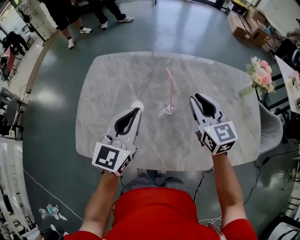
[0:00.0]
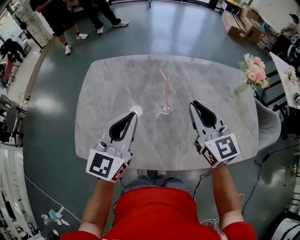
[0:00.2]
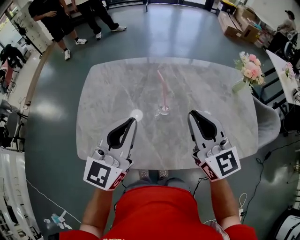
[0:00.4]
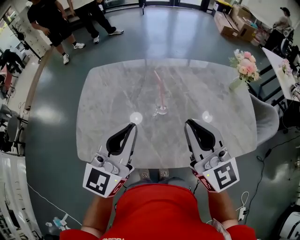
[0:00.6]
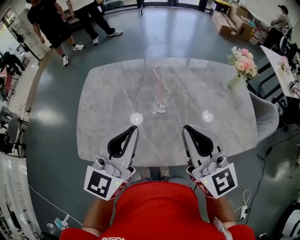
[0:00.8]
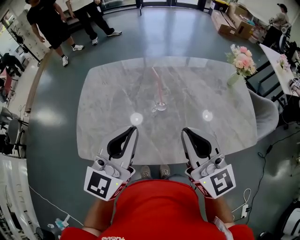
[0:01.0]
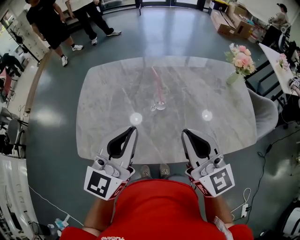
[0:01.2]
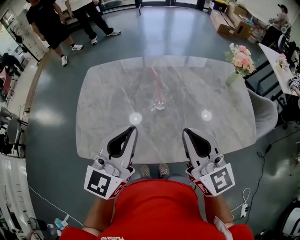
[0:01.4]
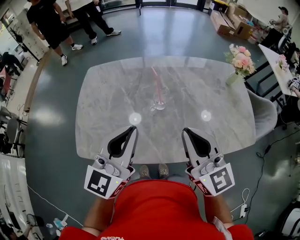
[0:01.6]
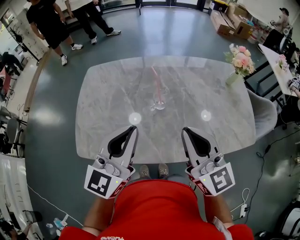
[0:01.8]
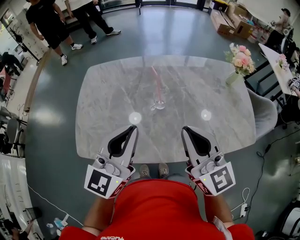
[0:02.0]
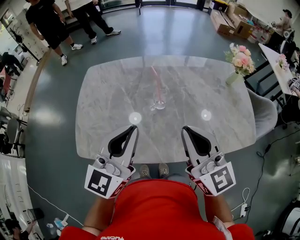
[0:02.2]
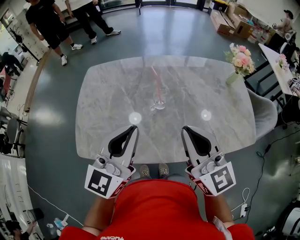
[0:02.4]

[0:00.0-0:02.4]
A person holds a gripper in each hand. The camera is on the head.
0:00.0 to 0:01.2: Both grippers travel together backward and upward, some 15 cm.
0:01.2 to 0:02.4: The two grippers keep their place.

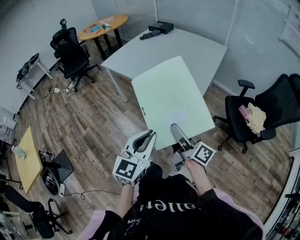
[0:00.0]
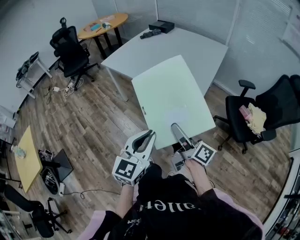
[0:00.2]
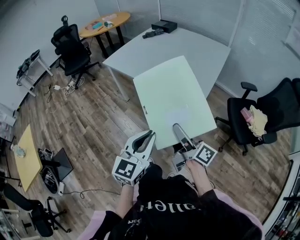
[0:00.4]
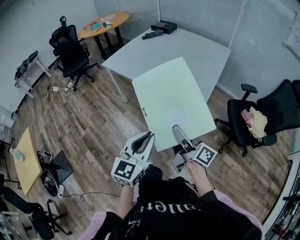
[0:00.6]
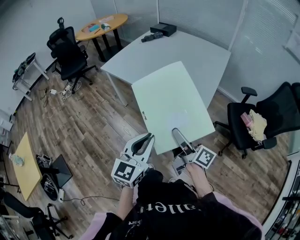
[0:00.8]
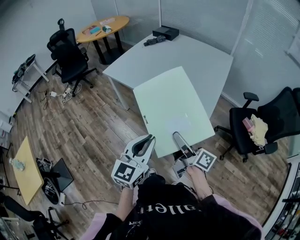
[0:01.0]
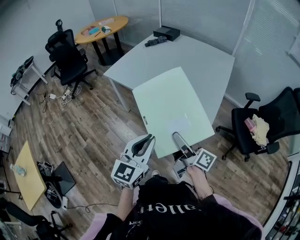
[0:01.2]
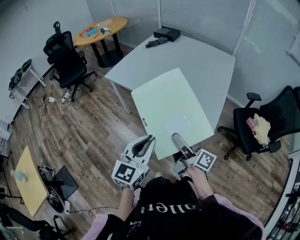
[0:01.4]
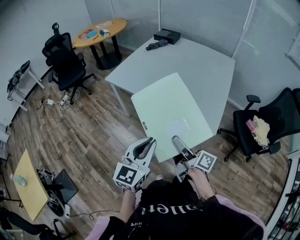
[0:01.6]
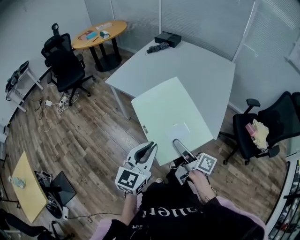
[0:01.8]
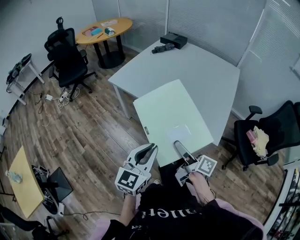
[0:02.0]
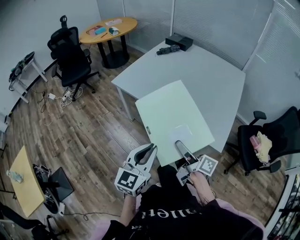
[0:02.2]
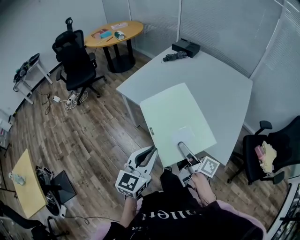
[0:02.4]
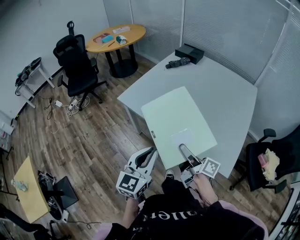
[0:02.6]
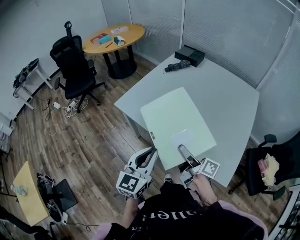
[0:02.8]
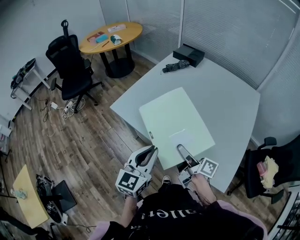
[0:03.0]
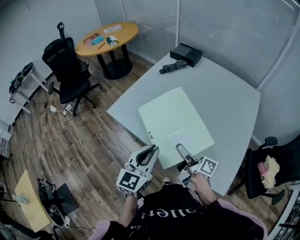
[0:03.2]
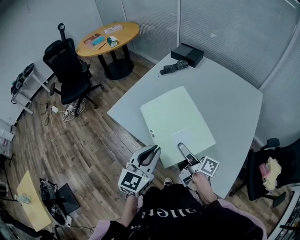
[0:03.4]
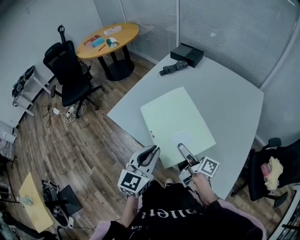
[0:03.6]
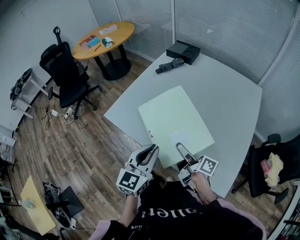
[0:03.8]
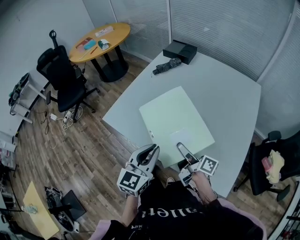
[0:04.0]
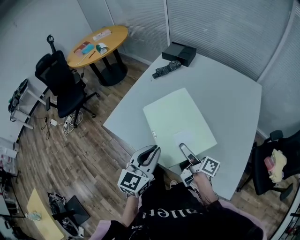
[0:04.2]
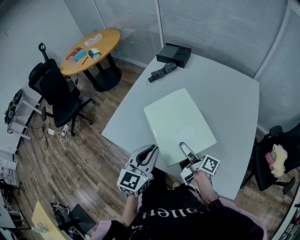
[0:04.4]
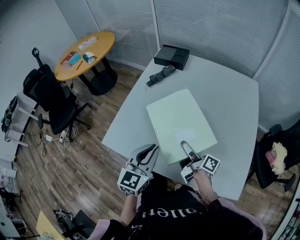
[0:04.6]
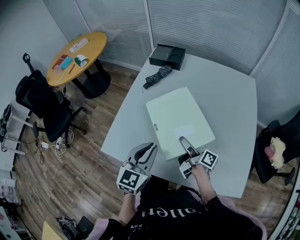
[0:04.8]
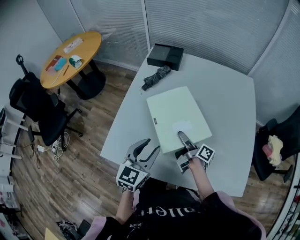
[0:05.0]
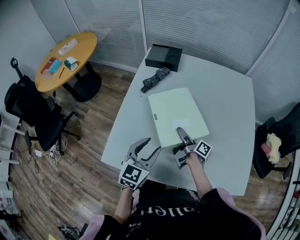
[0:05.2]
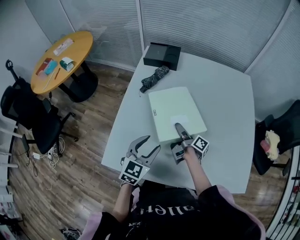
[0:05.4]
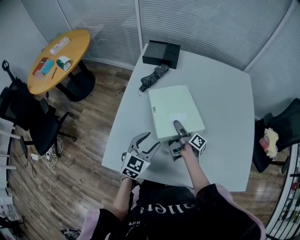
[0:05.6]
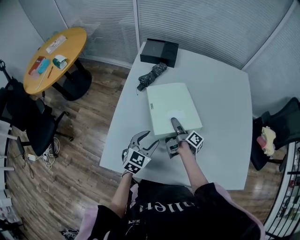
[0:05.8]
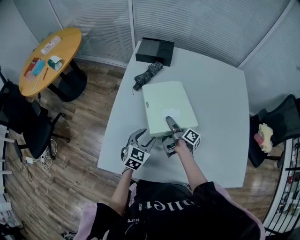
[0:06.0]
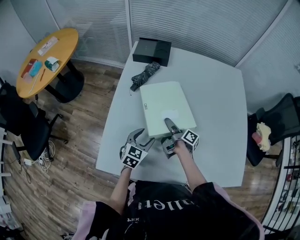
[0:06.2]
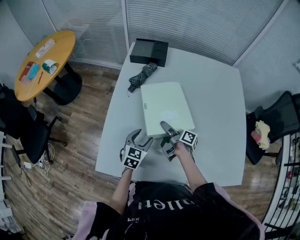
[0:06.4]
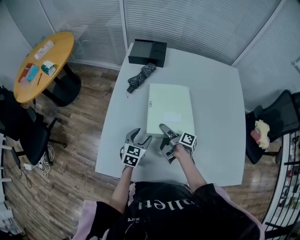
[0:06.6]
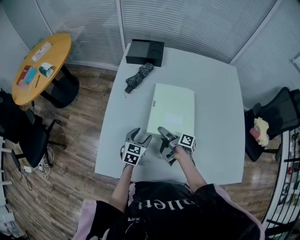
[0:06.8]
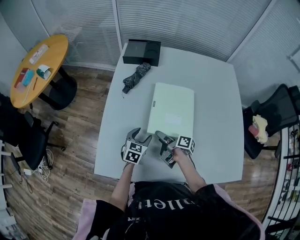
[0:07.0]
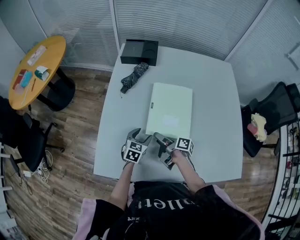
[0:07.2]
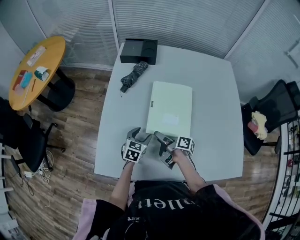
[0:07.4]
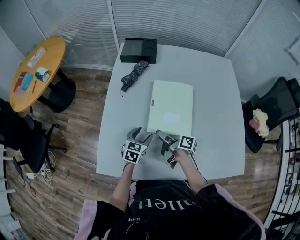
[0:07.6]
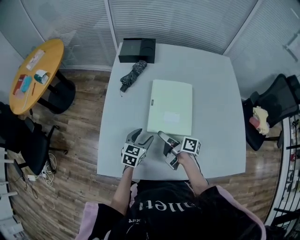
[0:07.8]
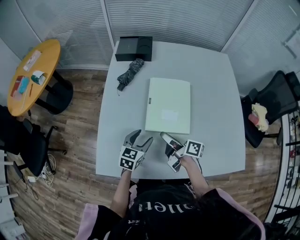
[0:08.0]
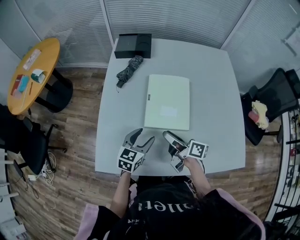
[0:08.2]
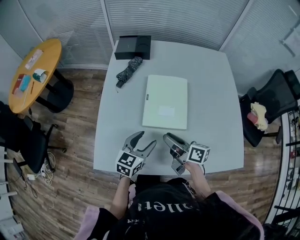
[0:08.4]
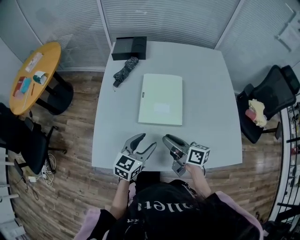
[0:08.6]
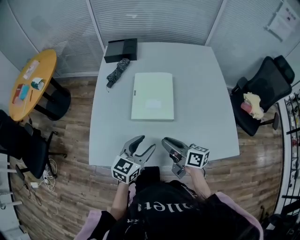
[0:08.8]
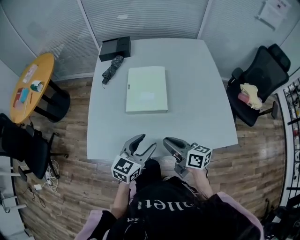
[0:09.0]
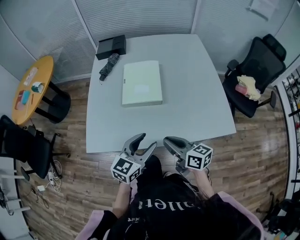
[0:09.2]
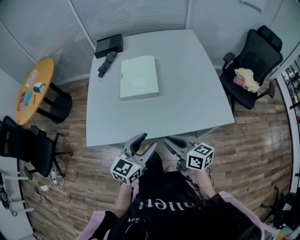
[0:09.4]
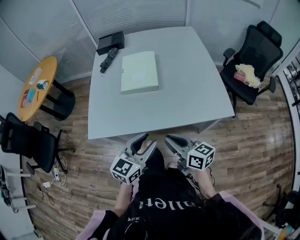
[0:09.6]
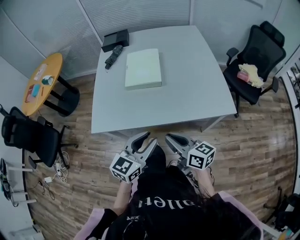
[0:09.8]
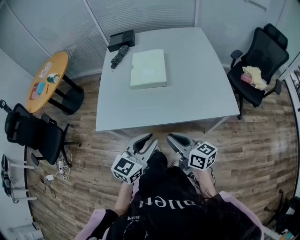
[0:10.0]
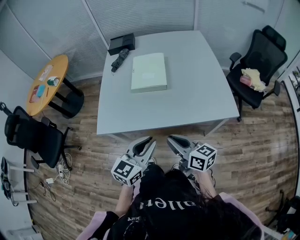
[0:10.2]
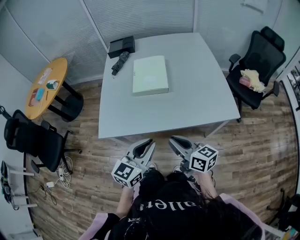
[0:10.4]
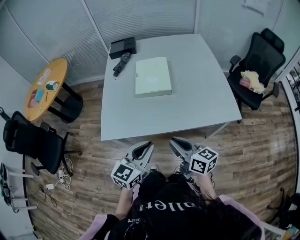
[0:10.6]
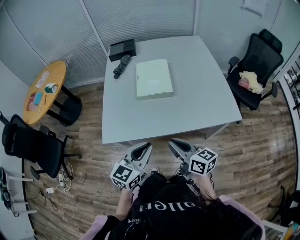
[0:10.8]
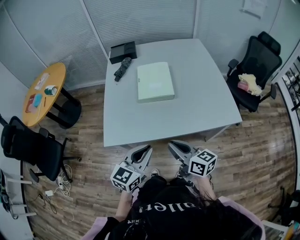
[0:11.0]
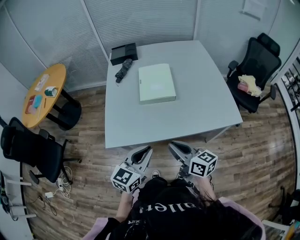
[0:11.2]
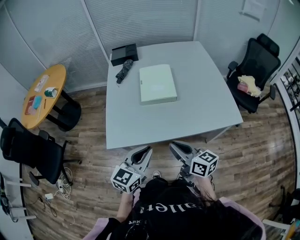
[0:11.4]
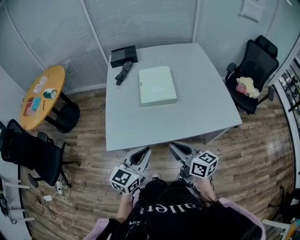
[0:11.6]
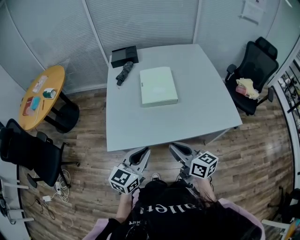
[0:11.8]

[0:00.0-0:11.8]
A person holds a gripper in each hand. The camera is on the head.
0:00.0 to 0:01.4: The right gripper goes roughly 20 cm to the left and forward, while the left gripper goes approximately 20 cm forward and to the left.
0:01.4 to 0:03.0: Both grippers move forward, approximately 30 cm.
0:03.0 to 0:04.4: The two grippers go roughly 15 cm forward.
0:04.4 to 0:06.0: The left gripper ends up some 30 cm from where it was, rotates approximately 30 degrees, and opens its fingers, while the right gripper moves some 25 cm, and turns by approximately 30 degrees.
0:06.0 to 0:07.4: The right gripper heads backward, covering roughly 10 cm, while the left gripper goes some 5 cm downward.
0:07.4 to 0:08.8: The two grippers go approximately 20 cm upward, backward and to the right. The right gripper rotates roughly 40 degrees, and closes its fingers; the left gripper turns by some 20 degrees.
0:08.8 to 0:10.4: Both grippers travel together backward, approximately 20 cm. The left gripper closes up.
0:10.4 to 0:11.8: Both grippers travel together to the left, approximately 10 cm.

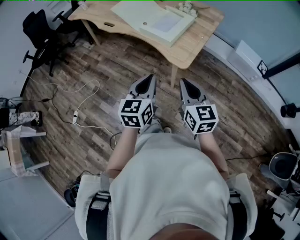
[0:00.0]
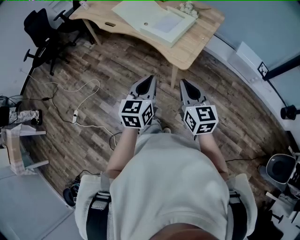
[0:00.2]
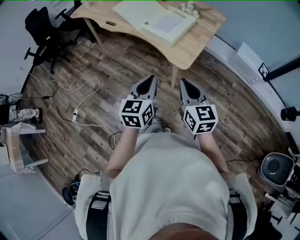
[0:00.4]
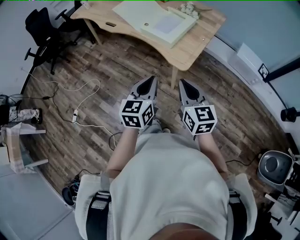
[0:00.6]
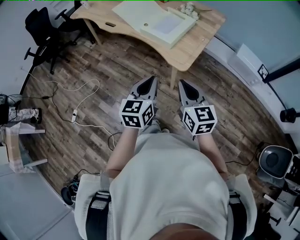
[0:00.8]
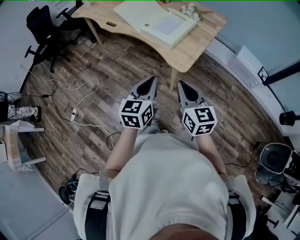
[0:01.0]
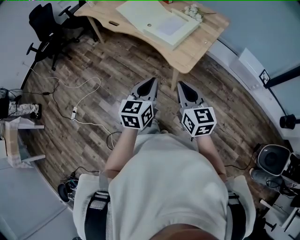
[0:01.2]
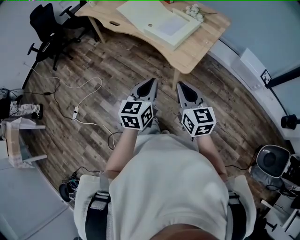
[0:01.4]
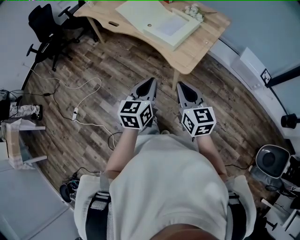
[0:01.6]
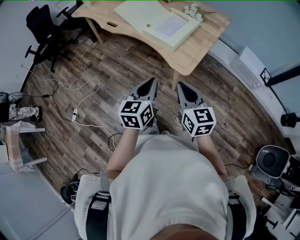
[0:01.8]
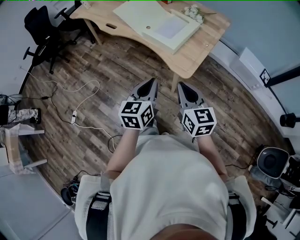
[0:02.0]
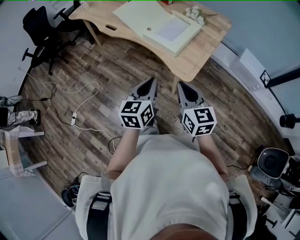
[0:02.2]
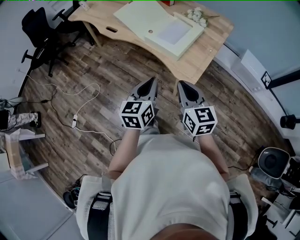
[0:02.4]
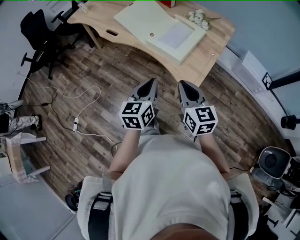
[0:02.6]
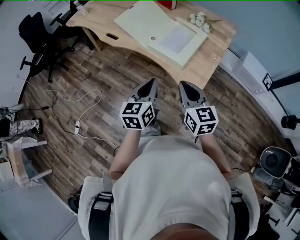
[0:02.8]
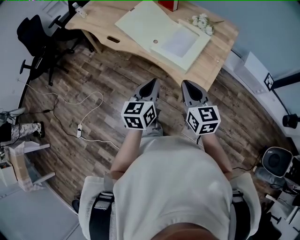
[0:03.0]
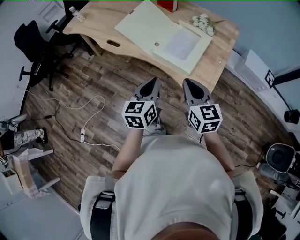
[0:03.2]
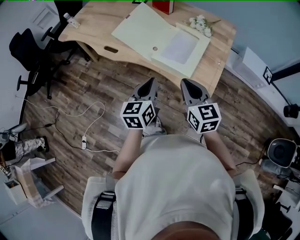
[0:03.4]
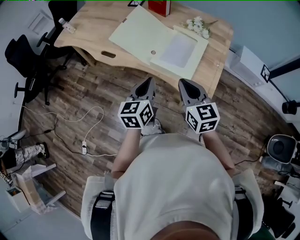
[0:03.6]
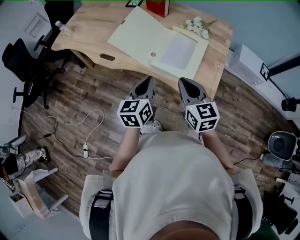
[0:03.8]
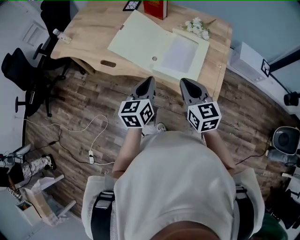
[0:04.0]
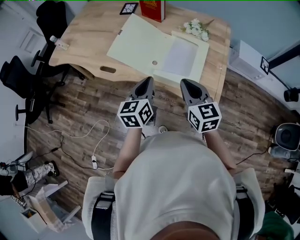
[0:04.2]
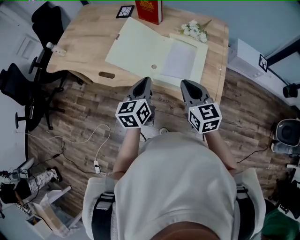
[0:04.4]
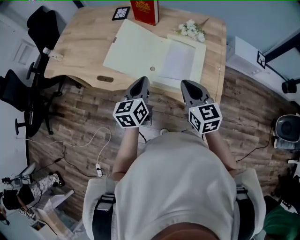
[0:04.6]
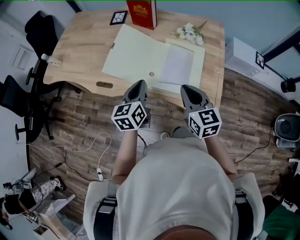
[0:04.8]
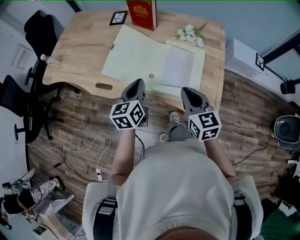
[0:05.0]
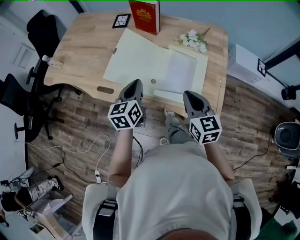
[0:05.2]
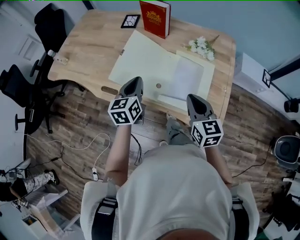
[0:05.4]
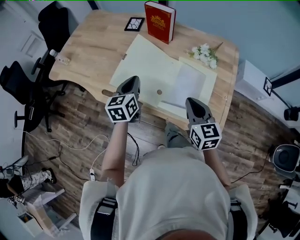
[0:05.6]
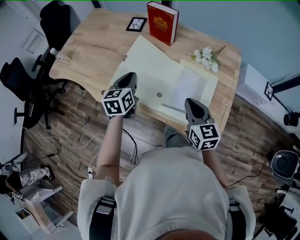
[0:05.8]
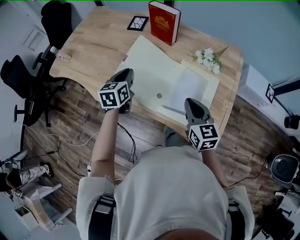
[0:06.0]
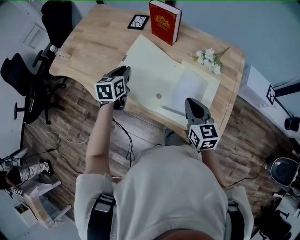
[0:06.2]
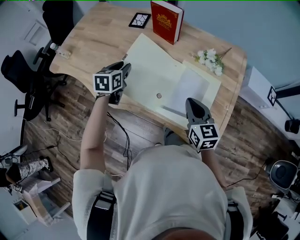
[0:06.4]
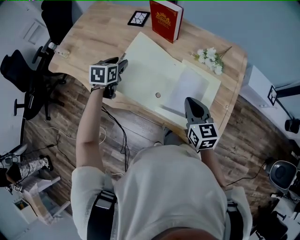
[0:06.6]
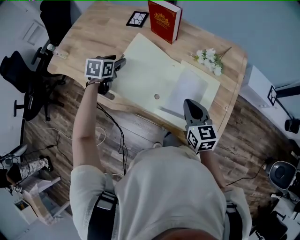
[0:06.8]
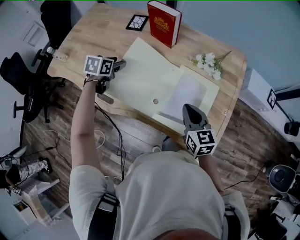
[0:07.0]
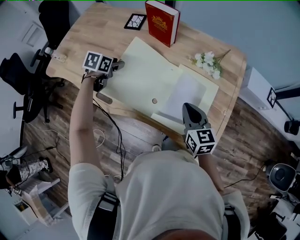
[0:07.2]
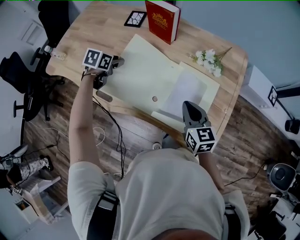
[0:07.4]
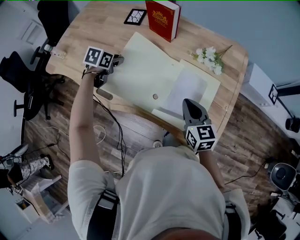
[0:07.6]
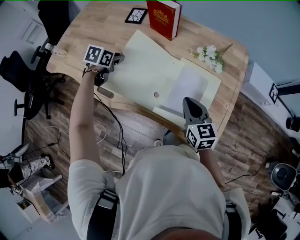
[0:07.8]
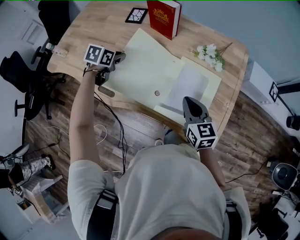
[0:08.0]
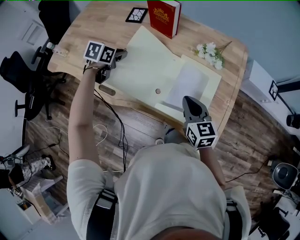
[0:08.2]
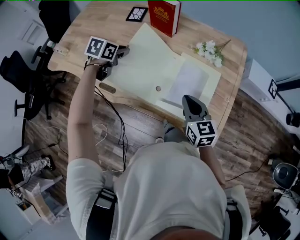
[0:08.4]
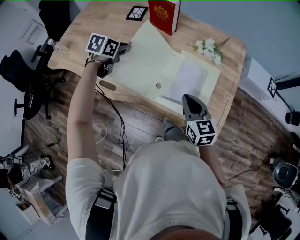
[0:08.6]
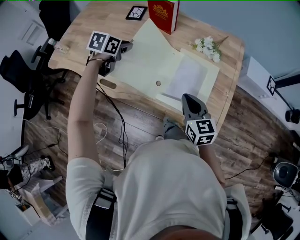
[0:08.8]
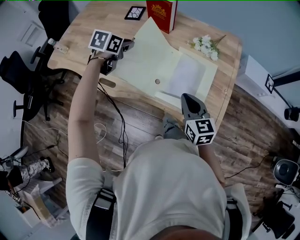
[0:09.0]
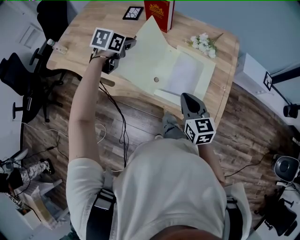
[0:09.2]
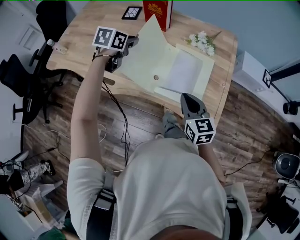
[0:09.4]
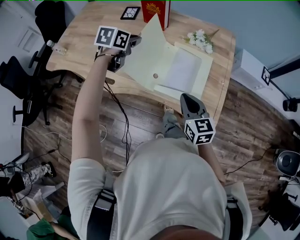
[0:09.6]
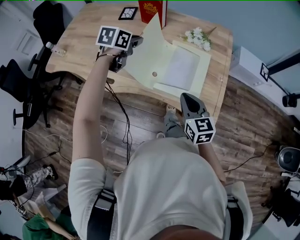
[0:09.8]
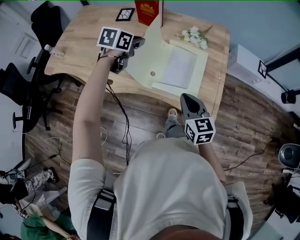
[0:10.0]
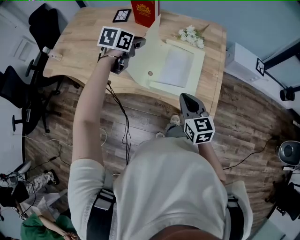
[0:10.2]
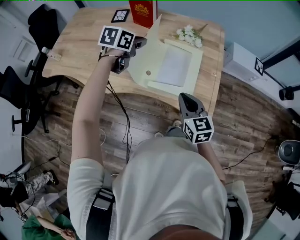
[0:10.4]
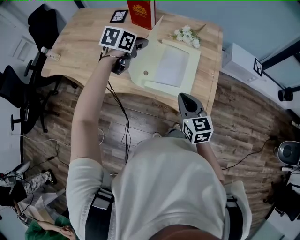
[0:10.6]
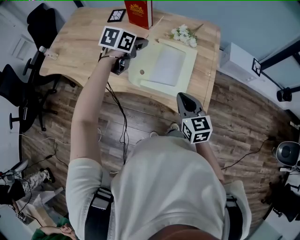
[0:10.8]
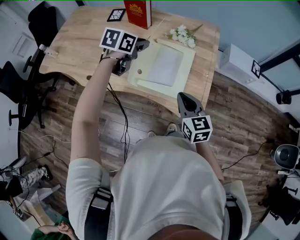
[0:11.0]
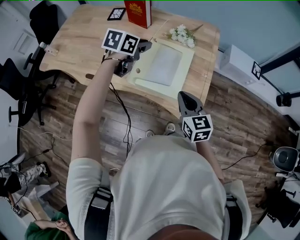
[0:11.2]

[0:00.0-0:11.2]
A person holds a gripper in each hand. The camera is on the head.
0:00.0 to 0:01.6: There are only small adjustments of the grippers.
0:01.6 to 0:03.2: The two grippers go some 20 cm forward.
0:03.2 to 0:04.8: The left gripper is displaced forward and to the left by roughly 20 cm. Meanwhile the right gripper goes some 15 cm forward.
0:04.8 to 0:06.4: The right gripper heads forward, covering some 10 cm, while the left gripper is displaced forward and to the left by approximately 25 cm, changes its angle by about 20 degrees, and opens.
0:06.4 to 0:08.0: The left gripper changes place by approximately 5 cm, rotates about 20 degrees, and opens and closes again.
0:08.0 to 0:09.6: The right gripper shifts some 10 cm backward. Meanwhile the left gripper is displaced to the right and upward by about 15 cm.
0:09.6 to 0:11.2: The right gripper is displaced to the right by approximately 10 cm, while the left gripper heads to the right, covering some 15 cm.
